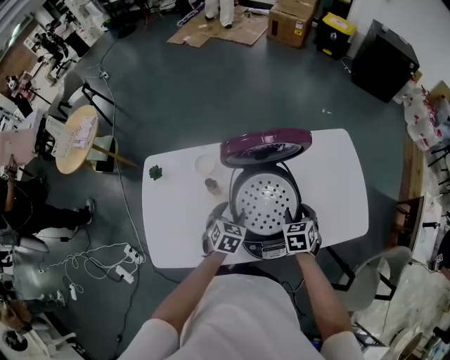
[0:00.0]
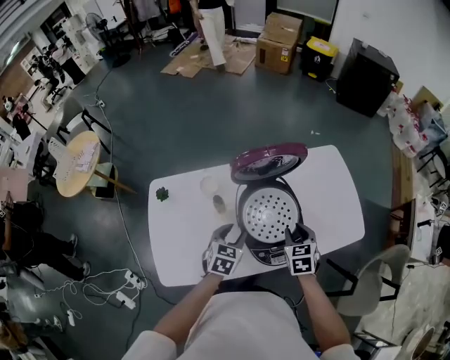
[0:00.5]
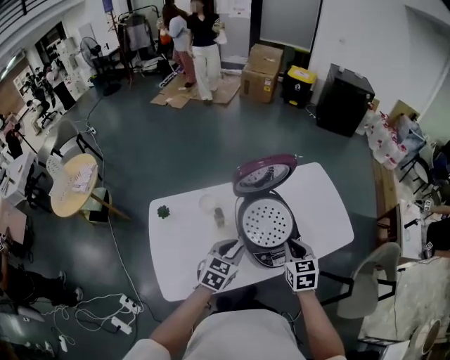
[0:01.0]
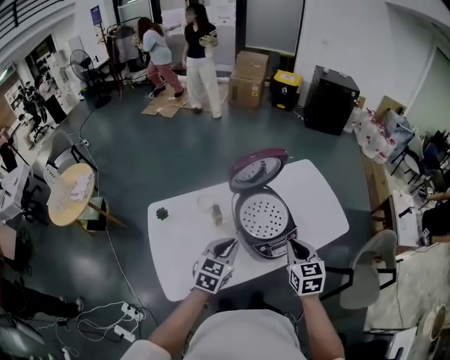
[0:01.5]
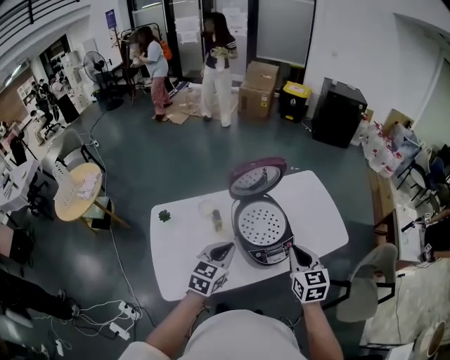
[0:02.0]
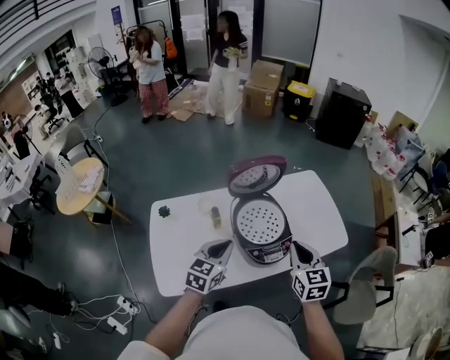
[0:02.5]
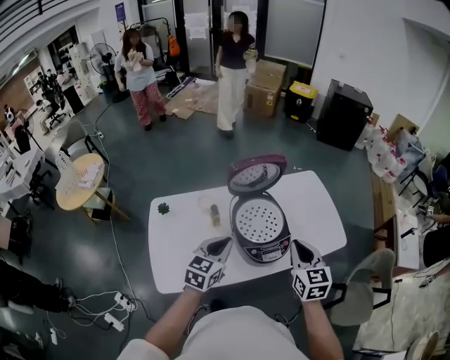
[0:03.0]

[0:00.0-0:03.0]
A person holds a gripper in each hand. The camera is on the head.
0:00.0 to 0:01.5: Both grippers travel together upward and backward, approximately 25 cm. The right gripper swivels some 30 degrees, and closes up; the left gripper rotates approximately 30 degrees, and closes.
0:01.5 to 0:03.0: The right gripper changes place by some 5 cm.

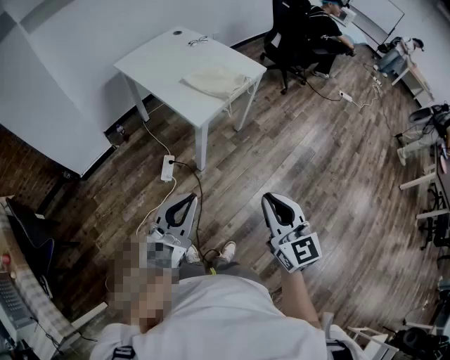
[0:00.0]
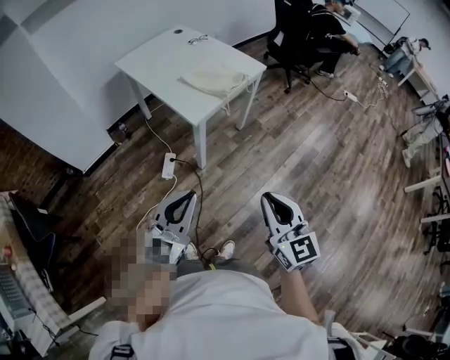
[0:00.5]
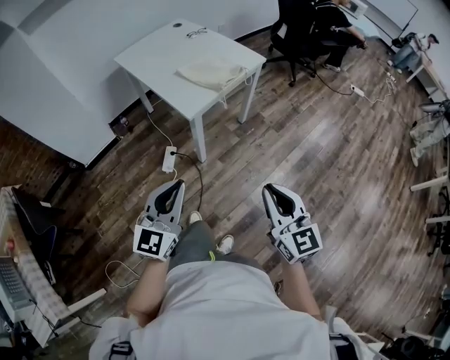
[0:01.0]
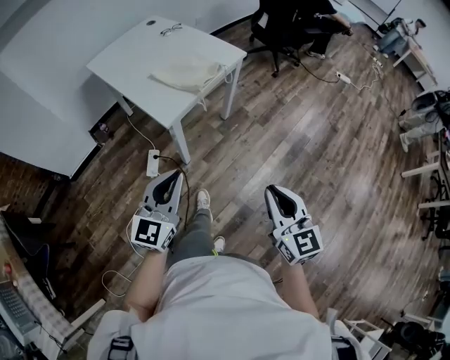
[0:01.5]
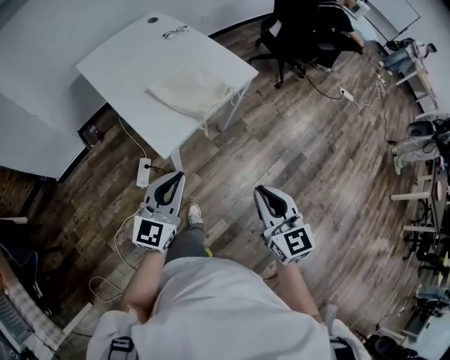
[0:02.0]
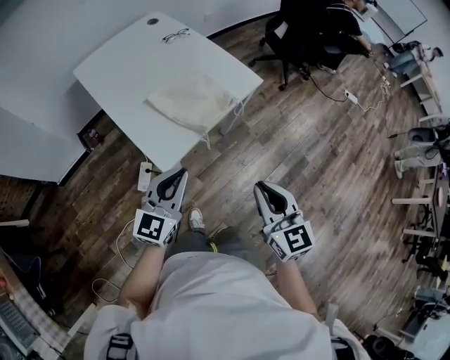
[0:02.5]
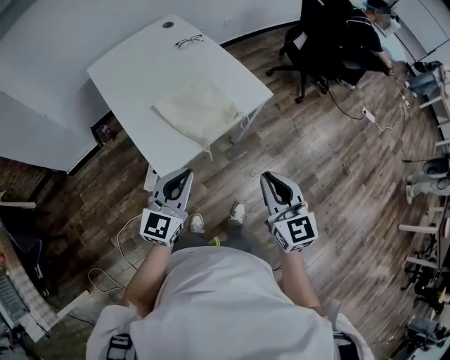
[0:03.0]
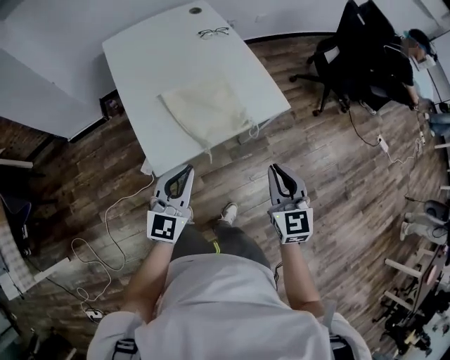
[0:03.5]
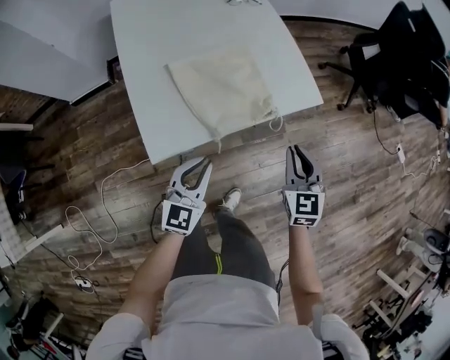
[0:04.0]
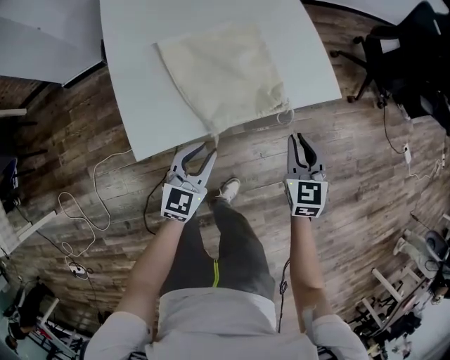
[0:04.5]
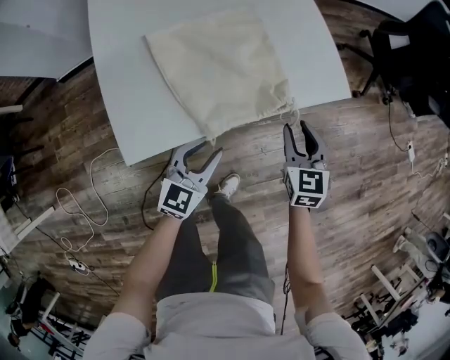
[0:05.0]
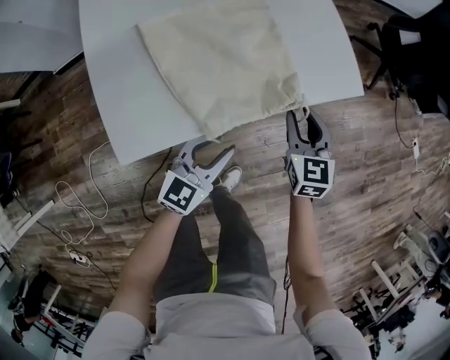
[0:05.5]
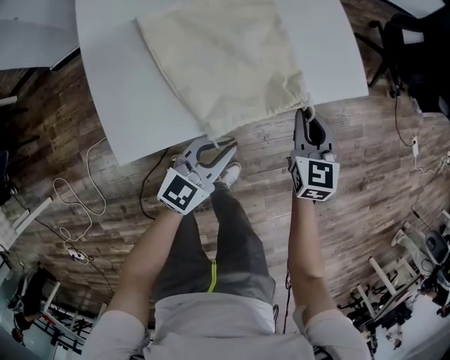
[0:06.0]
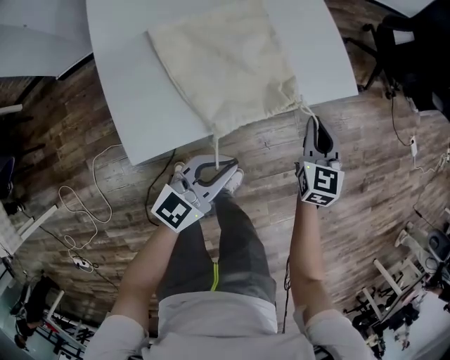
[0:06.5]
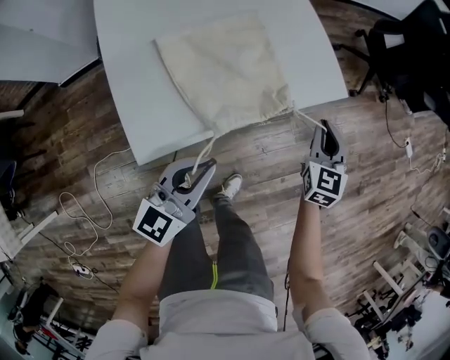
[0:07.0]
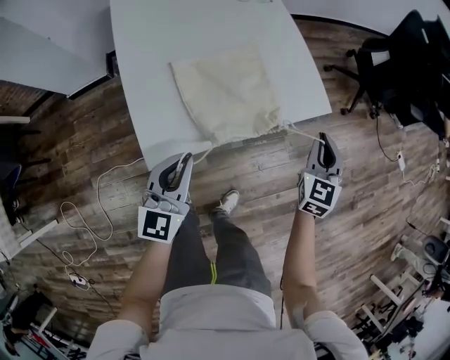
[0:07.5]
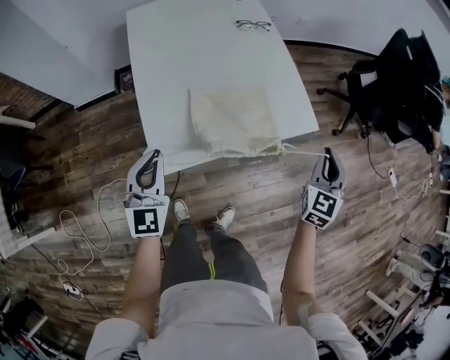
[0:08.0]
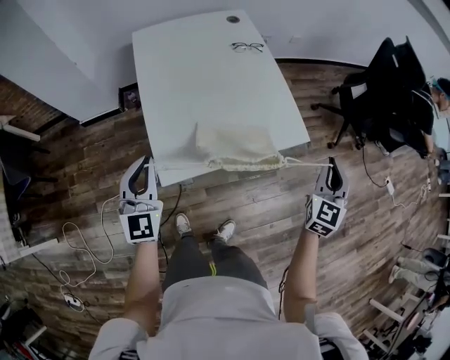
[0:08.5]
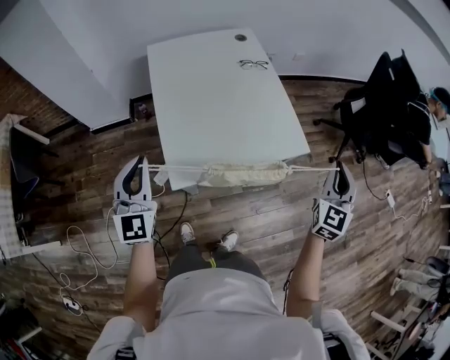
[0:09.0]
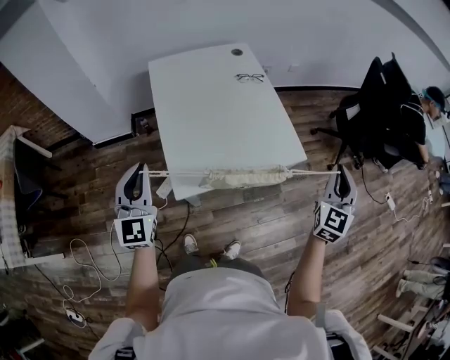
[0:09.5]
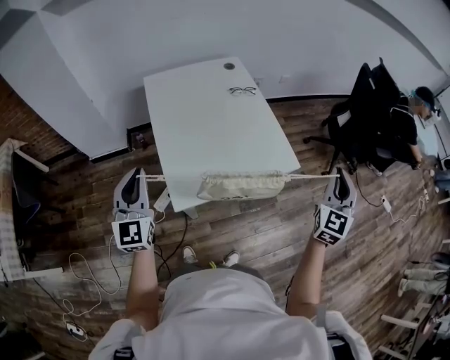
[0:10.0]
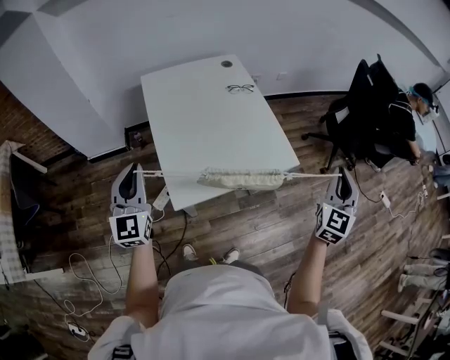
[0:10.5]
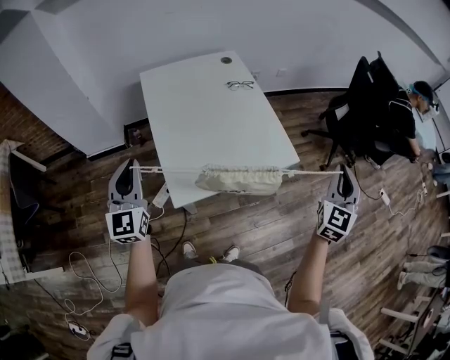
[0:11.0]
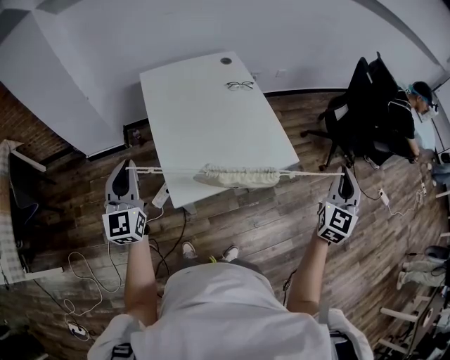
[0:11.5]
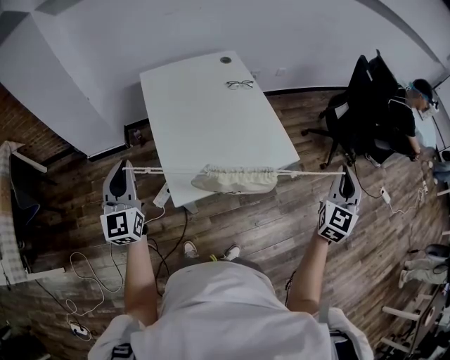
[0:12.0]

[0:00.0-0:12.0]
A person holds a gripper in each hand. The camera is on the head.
0:00.0 to 0:02.0: Both grippers move forward, approximately 30 cm.
0:02.0 to 0:04.0: The right gripper heads forward and downward, covering some 40 cm; the left gripper travels forward, downward and to the right by approximately 30 cm, and swivels roughly 20 degrees.
0:04.0 to 0:06.0: Both grippers move downward and forward, approximately 20 cm. The left gripper opens, then closes again; the right gripper opens and closes again.
0:06.0 to 0:08.0: The left gripper is displaced upward and to the left by approximately 35 cm, and turns by about 50 degrees. Meanwhile the right gripper heads upward, covering some 25 cm, and rotates roughly 30 degrees.
0:08.0 to 0:10.0: The right gripper travels upward by about 20 cm. The left gripper moves upward and to the left, roughly 20 cm.
0:10.0 to 0:12.0: There are only small adjustments of the grippers.

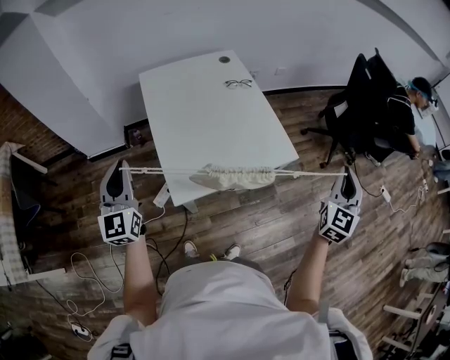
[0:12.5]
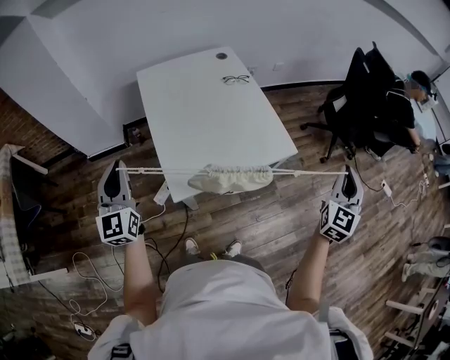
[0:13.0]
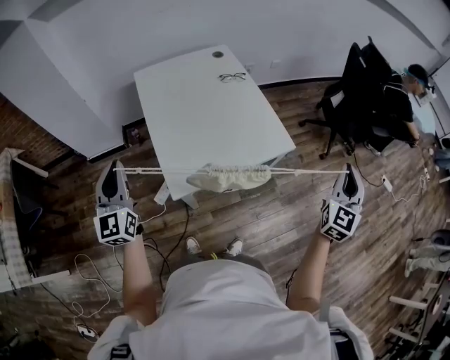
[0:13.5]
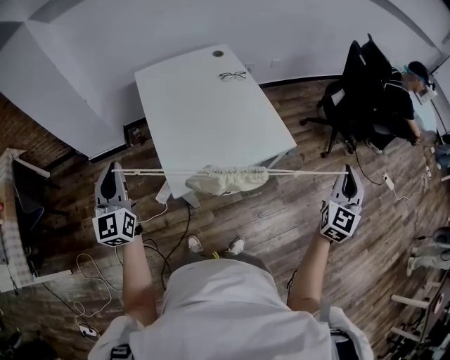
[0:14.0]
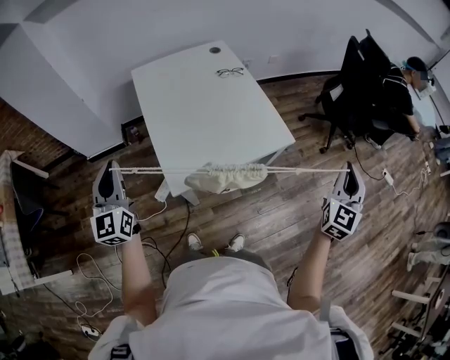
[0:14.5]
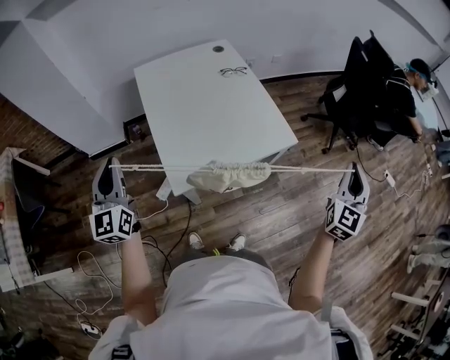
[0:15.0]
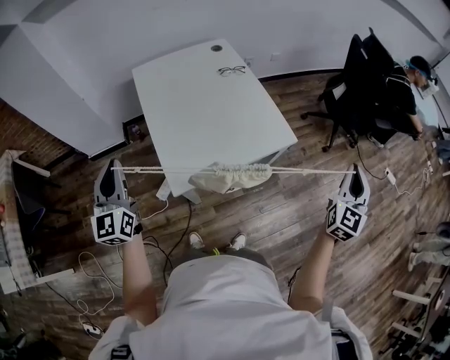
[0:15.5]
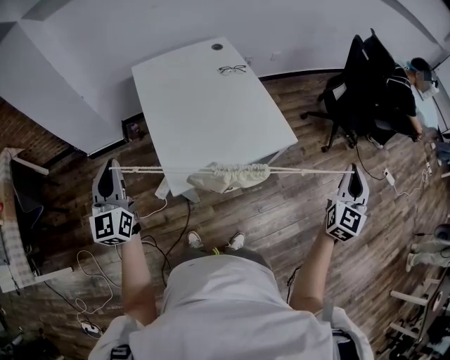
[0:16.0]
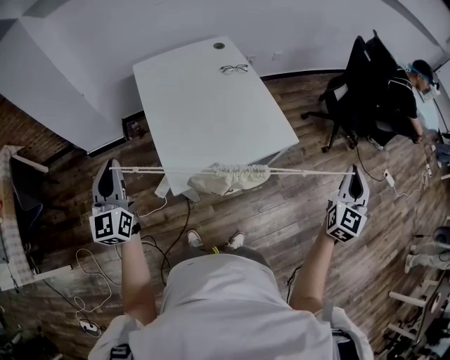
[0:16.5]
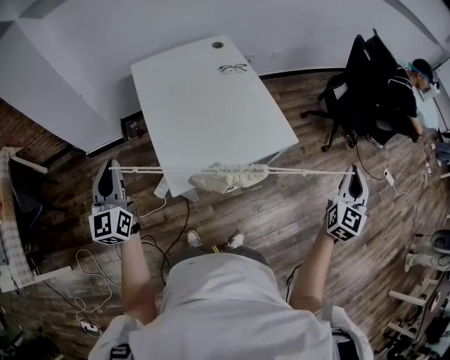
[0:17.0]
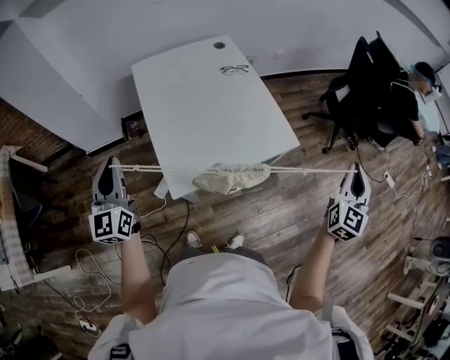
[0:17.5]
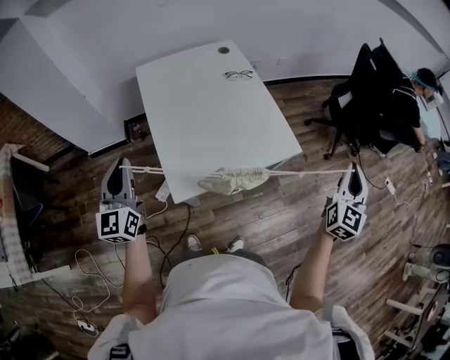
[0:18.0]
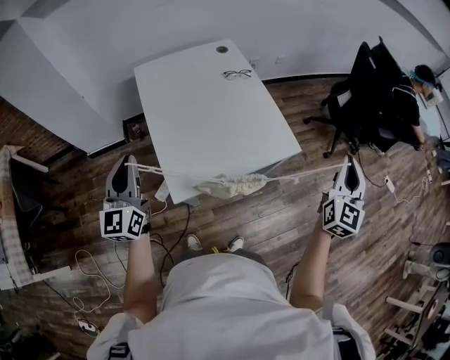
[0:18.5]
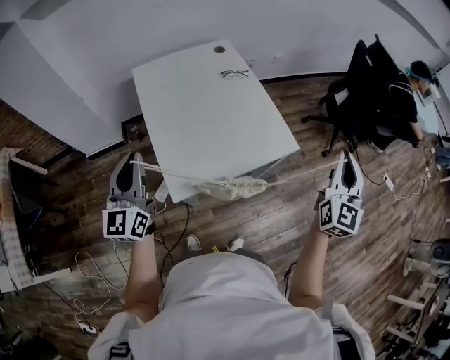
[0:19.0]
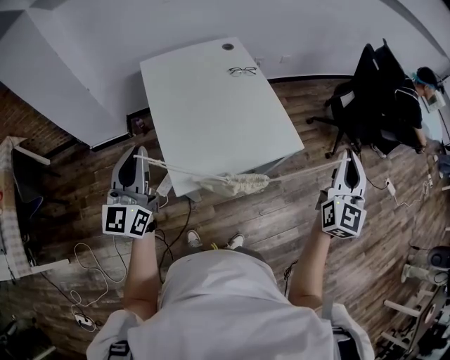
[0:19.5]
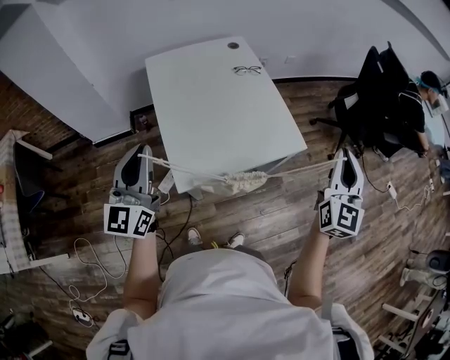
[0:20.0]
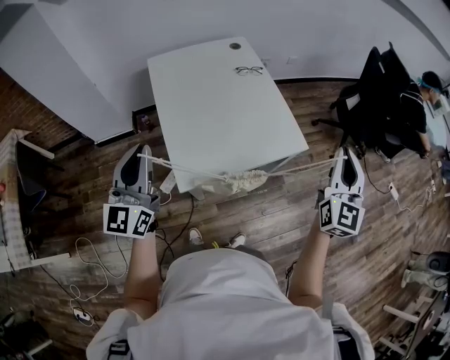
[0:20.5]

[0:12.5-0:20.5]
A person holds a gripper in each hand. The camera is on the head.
0:12.5 to 0:14.5: The right gripper shifts by some 5 cm.
0:14.5 to 0:16.5: There are only small adjustments of the grippers.
0:16.5 to 0:18.5: The right gripper travels to the left by roughly 5 cm. Meanwhile the left gripper changes place by some 5 cm.
0:18.5 to 0:20.5: The left gripper moves some 5 cm, while the right gripper travels to the left by about 5 cm.

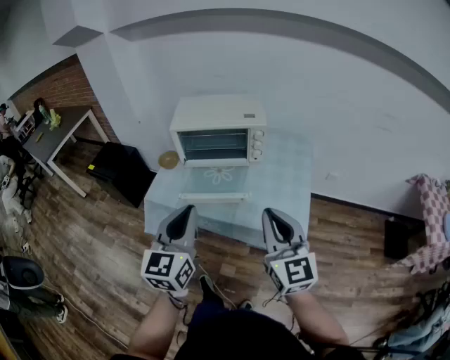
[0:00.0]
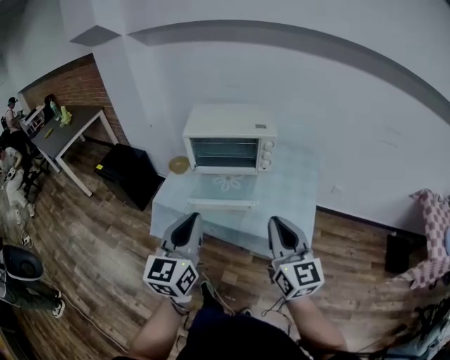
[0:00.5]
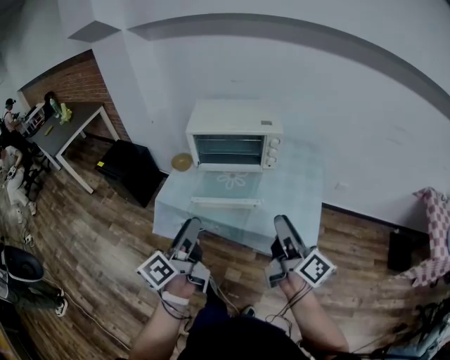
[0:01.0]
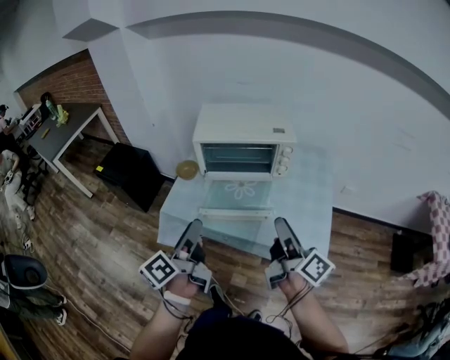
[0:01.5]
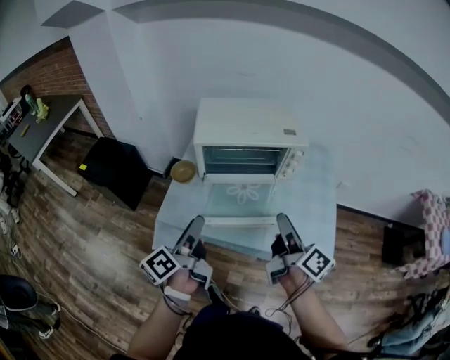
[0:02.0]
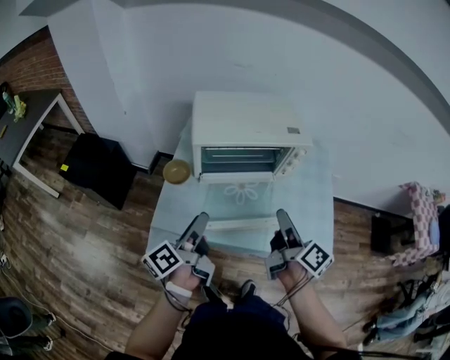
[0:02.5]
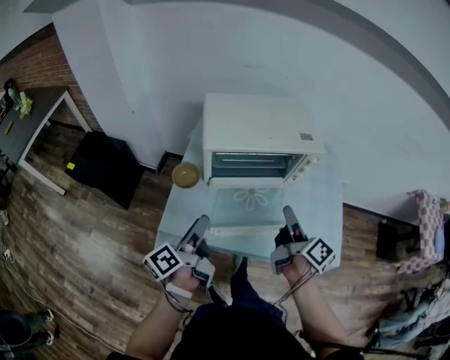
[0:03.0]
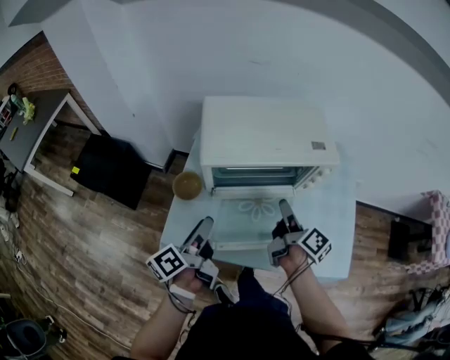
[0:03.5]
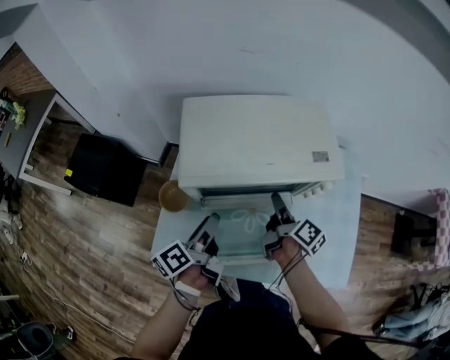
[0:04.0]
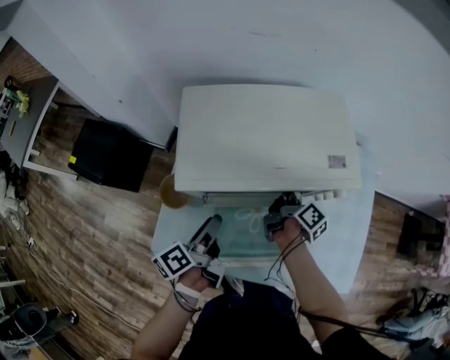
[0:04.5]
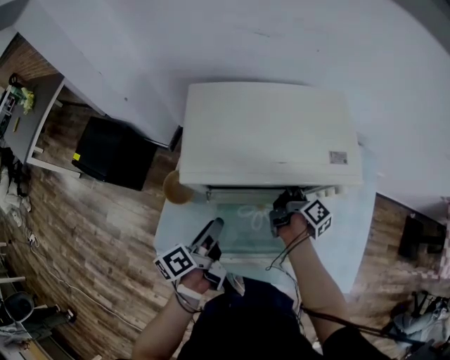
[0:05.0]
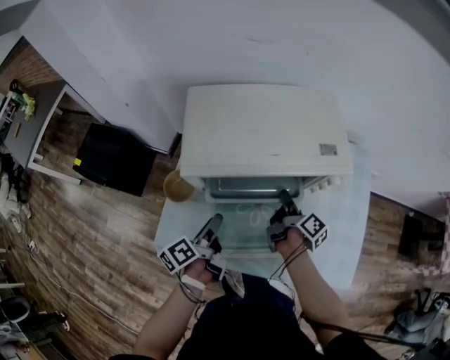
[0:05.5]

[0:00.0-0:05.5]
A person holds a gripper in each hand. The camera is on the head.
0:00.0 to 0:02.0: The right gripper travels forward and to the left by some 20 cm, rolls clockwise, seen from behind, by roughly 60 degrees, and opens its fingers; the left gripper travels forward, to the left and downward by about 25 cm, rotates around the line of its fingers by roughly 60 degrees, counterclockwise from behind, and opens up.
0:02.0 to 0:03.5: Both grippers travel together forward and downward, about 20 cm. The right gripper swivels roughly 30 degrees; the left gripper rotates about 20 degrees.
0:03.5 to 0:05.5: The left gripper goes approximately 15 cm downward, forward and to the right; the right gripper heads downward and forward, covering some 15 cm.
